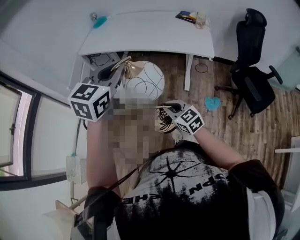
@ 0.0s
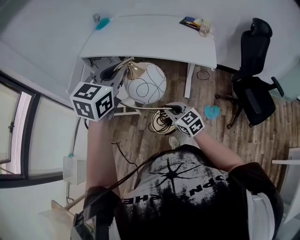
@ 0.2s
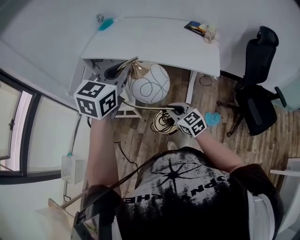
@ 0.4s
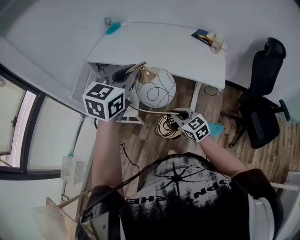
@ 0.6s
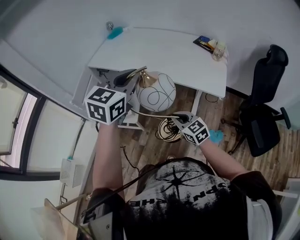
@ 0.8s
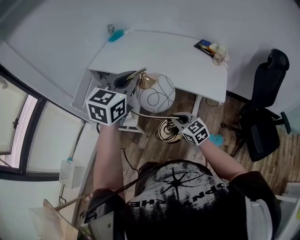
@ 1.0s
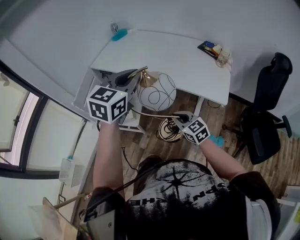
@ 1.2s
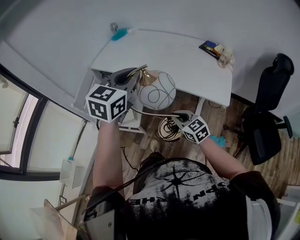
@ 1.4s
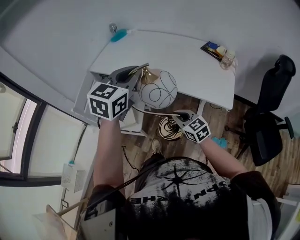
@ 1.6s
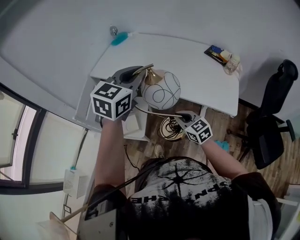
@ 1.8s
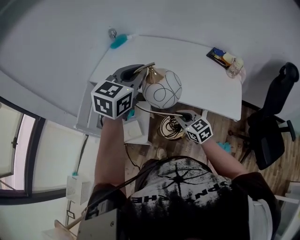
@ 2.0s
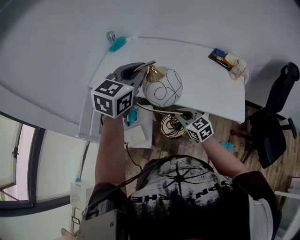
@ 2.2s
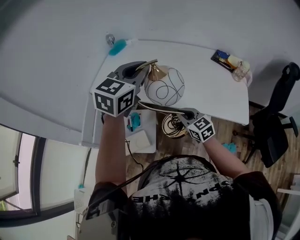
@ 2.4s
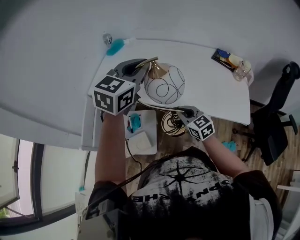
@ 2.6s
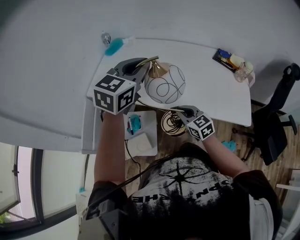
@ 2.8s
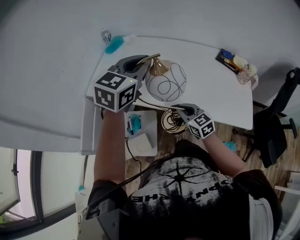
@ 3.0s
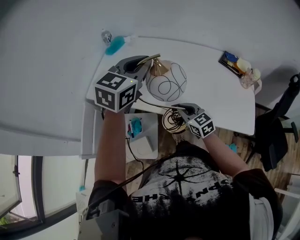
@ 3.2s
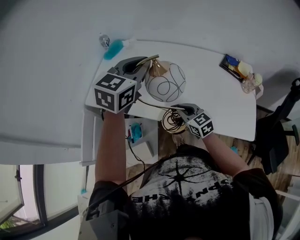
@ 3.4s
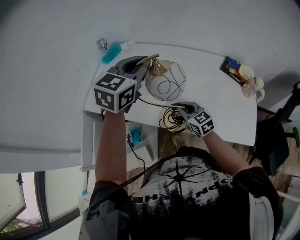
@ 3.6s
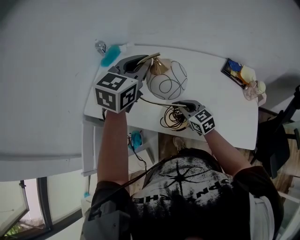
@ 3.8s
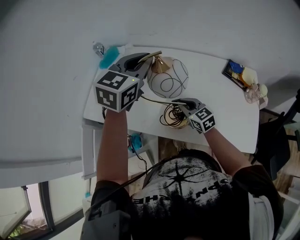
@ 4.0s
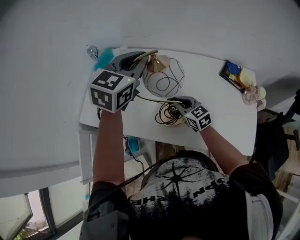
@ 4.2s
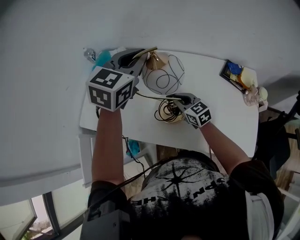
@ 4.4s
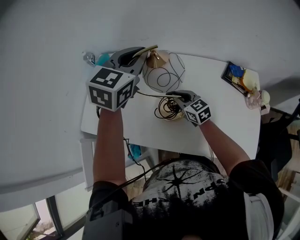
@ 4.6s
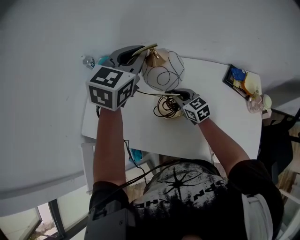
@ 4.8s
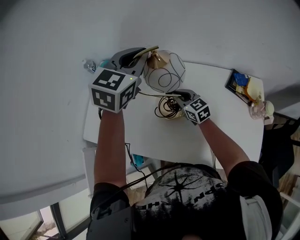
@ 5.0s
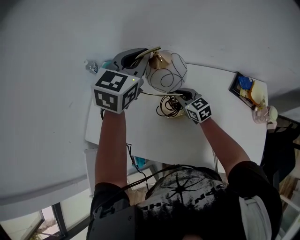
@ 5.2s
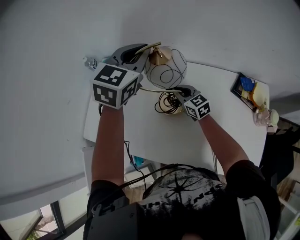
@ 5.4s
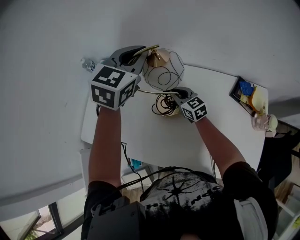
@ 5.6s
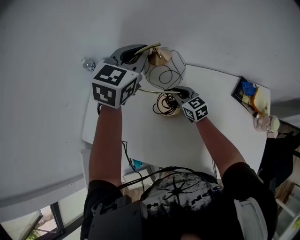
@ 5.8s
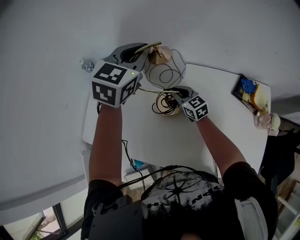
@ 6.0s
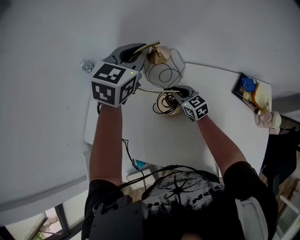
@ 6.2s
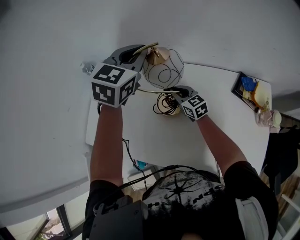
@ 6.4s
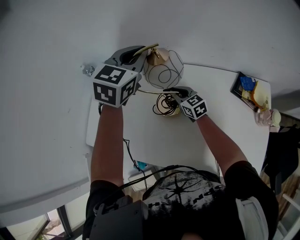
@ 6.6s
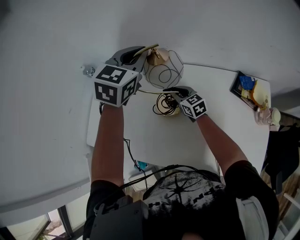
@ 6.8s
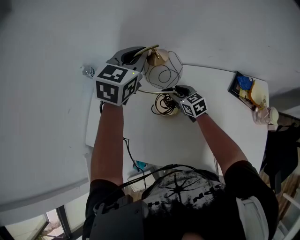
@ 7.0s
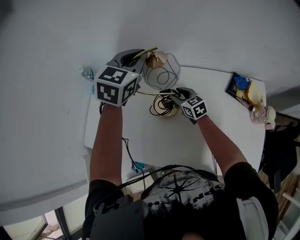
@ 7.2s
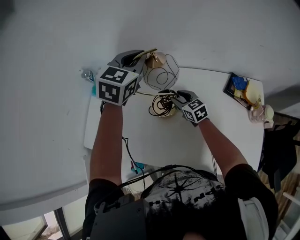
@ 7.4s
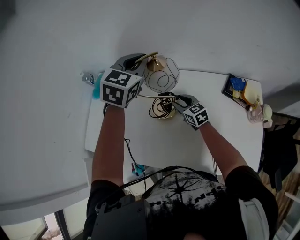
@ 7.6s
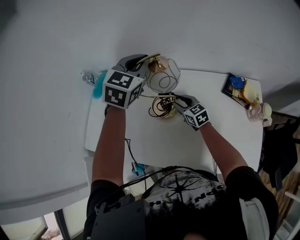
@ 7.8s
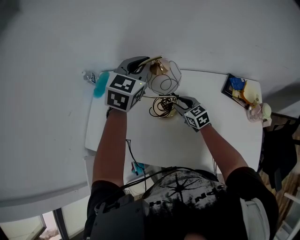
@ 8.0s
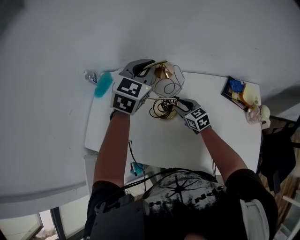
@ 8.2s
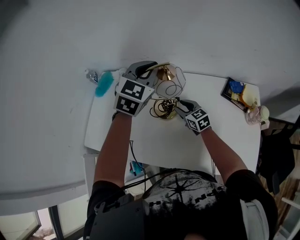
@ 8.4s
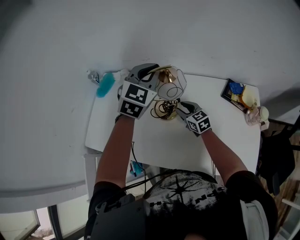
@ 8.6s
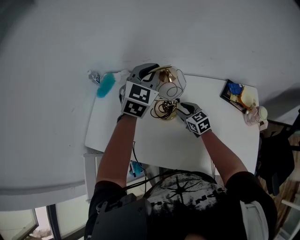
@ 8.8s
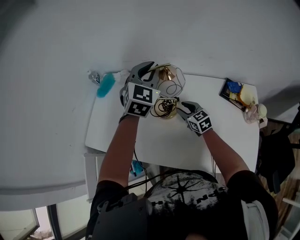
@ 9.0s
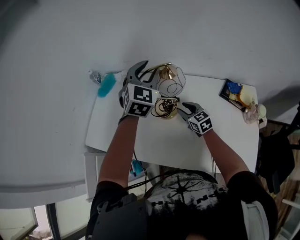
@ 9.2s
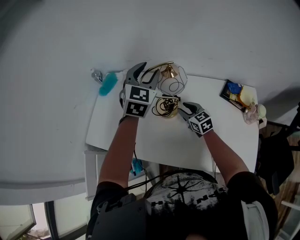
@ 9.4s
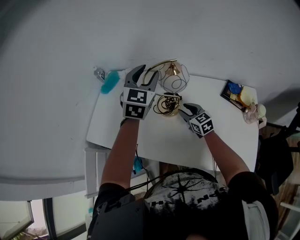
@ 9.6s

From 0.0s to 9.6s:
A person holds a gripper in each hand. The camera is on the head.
From 0.0s to 1.6s: The two grippers go roughly 25 cm forward.
From 1.6s to 3.2s: The two grippers go about 30 cm forward.
From 3.2s to 4.8s: Both grippers move forward, approximately 30 cm.
From 4.8s to 6.4s: Both grippers move forward, about 10 cm.
From 6.4s to 8.0s: The right gripper is displaced backward by about 5 cm, and opens up.
From 8.0s to 9.6s: The two grippers go roughly 5 cm backward. The left gripper opens.

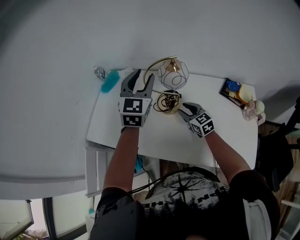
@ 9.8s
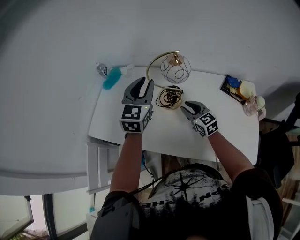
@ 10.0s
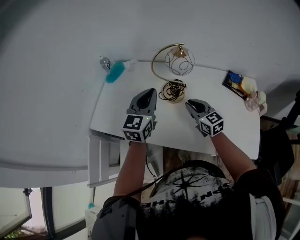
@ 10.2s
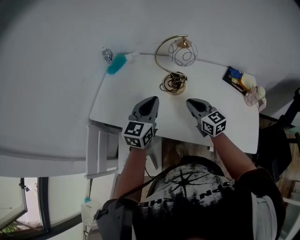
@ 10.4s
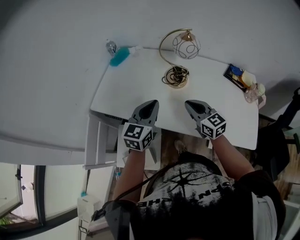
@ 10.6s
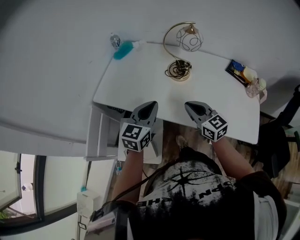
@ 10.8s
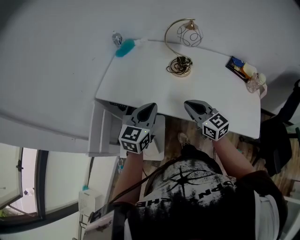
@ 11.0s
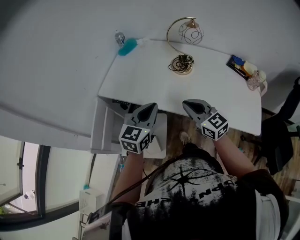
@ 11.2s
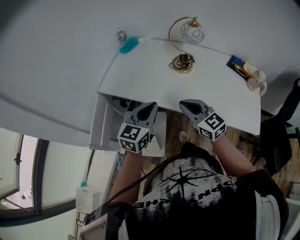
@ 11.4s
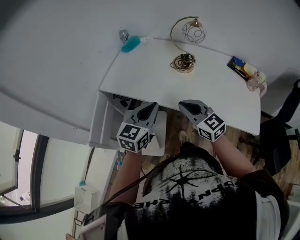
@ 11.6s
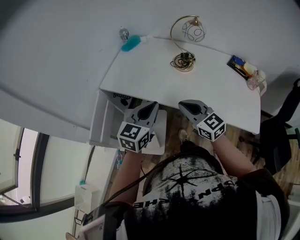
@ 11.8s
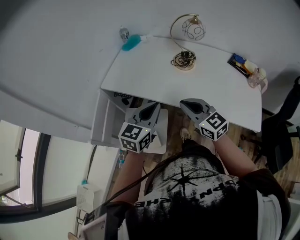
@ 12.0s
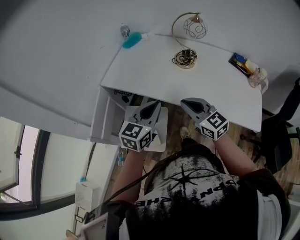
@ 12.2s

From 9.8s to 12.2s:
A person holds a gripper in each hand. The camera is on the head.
From 9.8s to 11.0s: The right gripper is displaced backward and to the left by roughly 25 cm, and closes its fingers, while the left gripper shifts approximately 35 cm backward, to the left and downward, turns by some 20 degrees, and closes up.
From 11.0s to 12.2s: The right gripper travels backward and to the left by approximately 10 cm, while the left gripper goes roughly 5 cm backward.

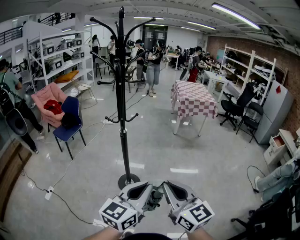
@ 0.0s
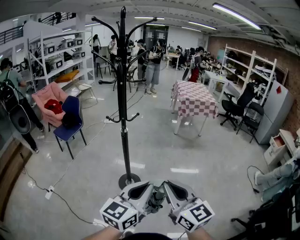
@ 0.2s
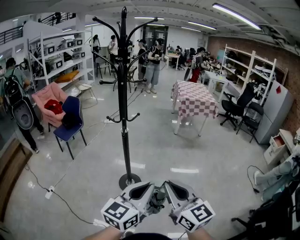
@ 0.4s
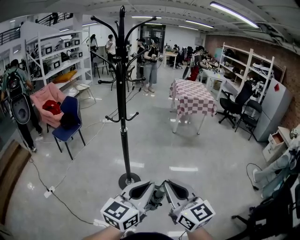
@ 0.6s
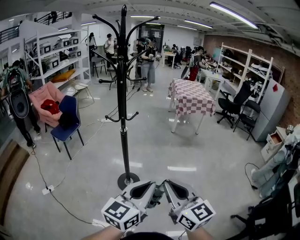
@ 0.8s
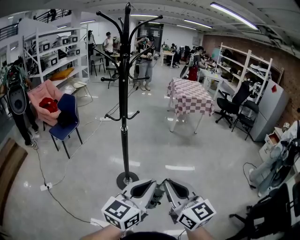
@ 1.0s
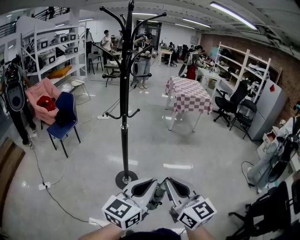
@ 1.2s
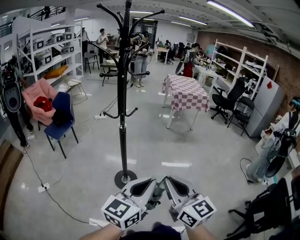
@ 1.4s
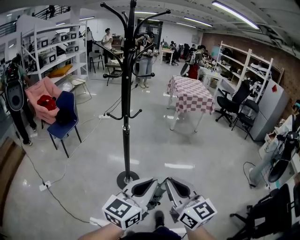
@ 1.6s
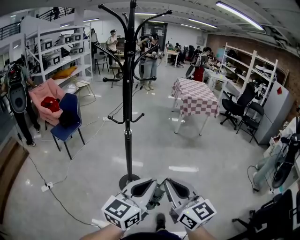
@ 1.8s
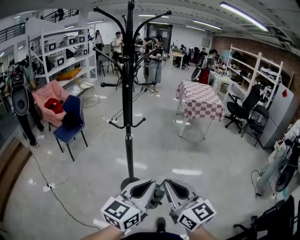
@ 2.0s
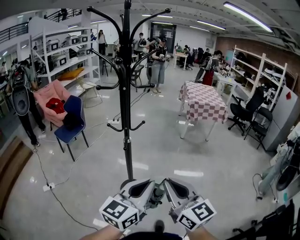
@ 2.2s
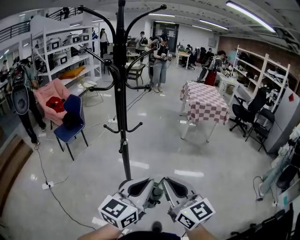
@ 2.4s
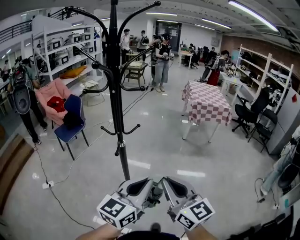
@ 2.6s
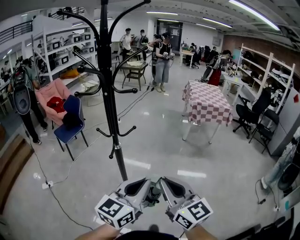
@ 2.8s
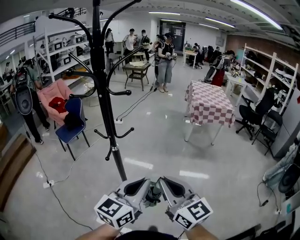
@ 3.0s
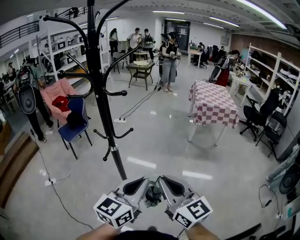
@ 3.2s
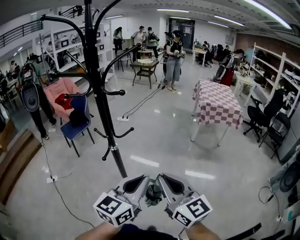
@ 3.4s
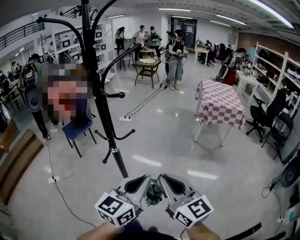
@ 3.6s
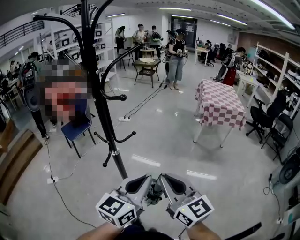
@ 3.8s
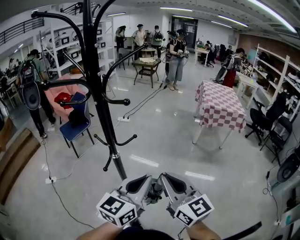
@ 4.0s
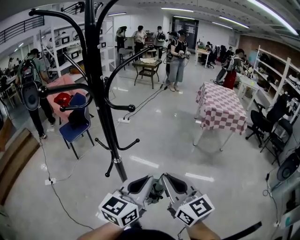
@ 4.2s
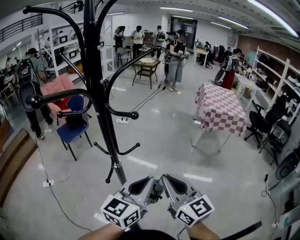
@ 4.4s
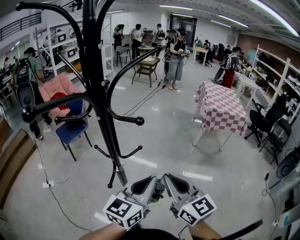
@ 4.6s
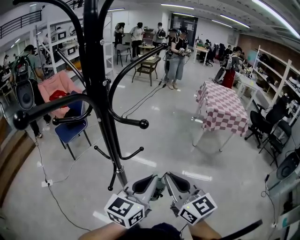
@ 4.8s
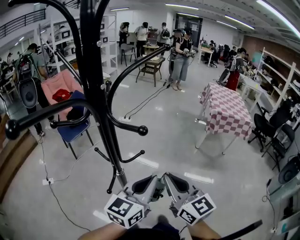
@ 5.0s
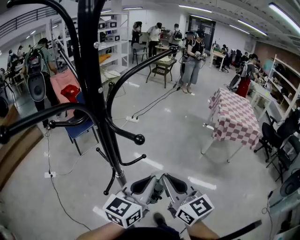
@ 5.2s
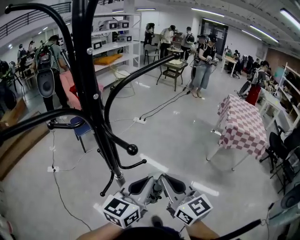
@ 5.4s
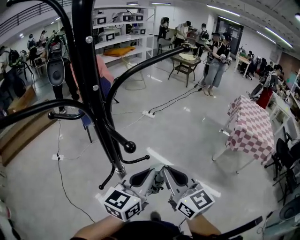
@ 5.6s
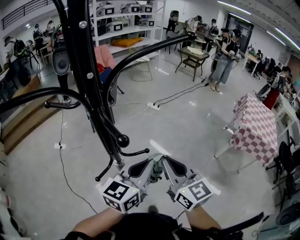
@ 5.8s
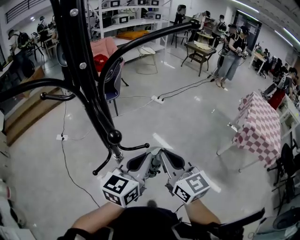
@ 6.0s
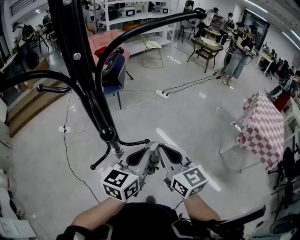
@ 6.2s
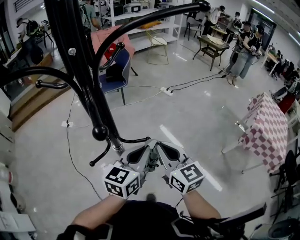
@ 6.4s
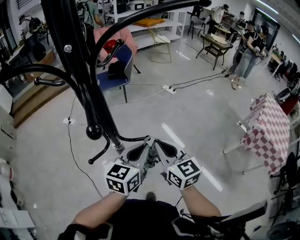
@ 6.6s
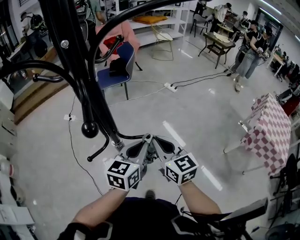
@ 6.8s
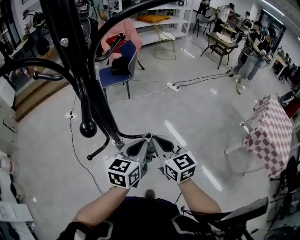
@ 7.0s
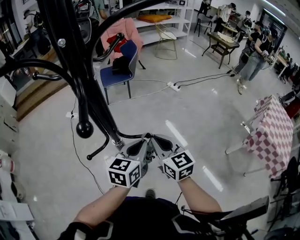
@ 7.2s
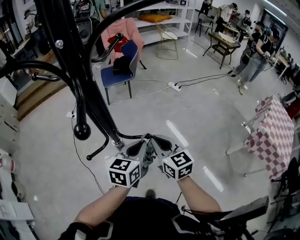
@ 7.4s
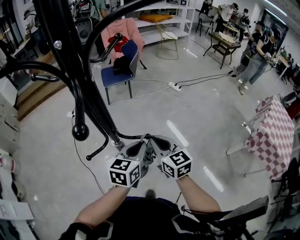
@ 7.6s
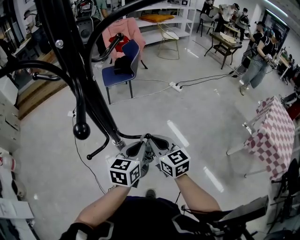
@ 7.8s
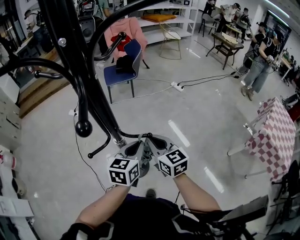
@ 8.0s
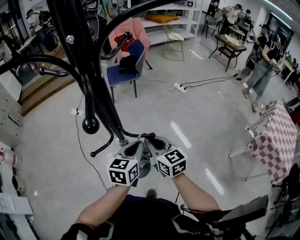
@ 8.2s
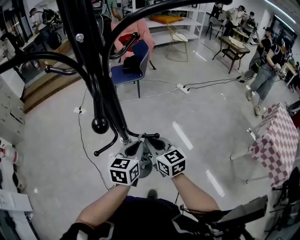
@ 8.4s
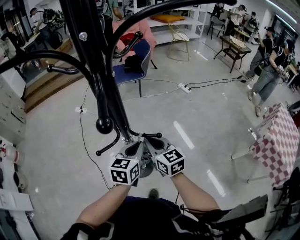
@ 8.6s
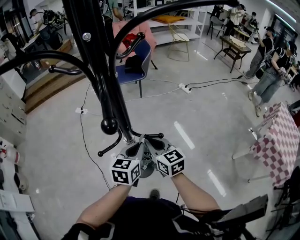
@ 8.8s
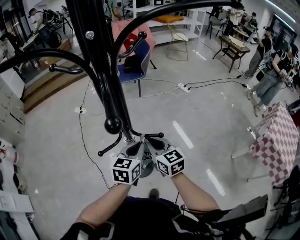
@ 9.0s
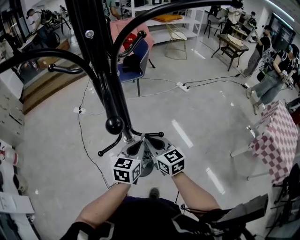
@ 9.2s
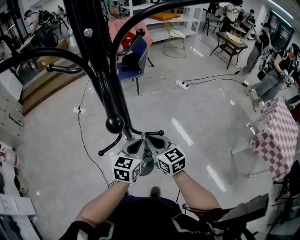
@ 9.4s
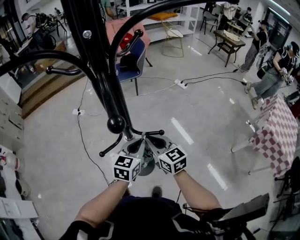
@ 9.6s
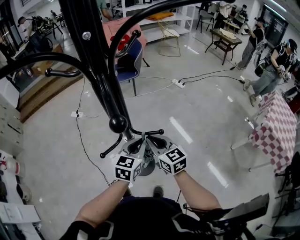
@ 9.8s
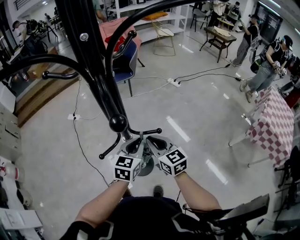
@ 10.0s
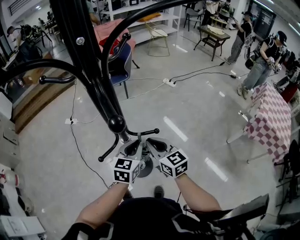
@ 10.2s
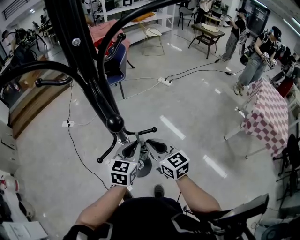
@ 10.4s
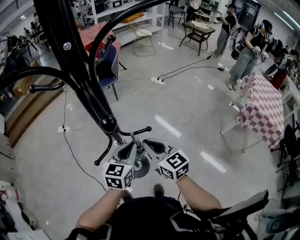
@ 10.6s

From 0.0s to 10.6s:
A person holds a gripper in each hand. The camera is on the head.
From 0.0s to 1.6s: Both grippers travel together to the left, roughly 5 cm.
From 1.6s to 3.0s: The grippers both shift forward and to the right by some 25 cm.
From 3.0s to 4.6s: Both grippers travel together forward, some 20 cm.
From 4.6s to 6.0s: The right gripper moves about 20 cm, and rotates roughly 30 degrees; the left gripper ends up about 15 cm from where it was, and rotates some 30 degrees.
From 6.0s to 7.6s: Both grippers travel together downward and forward, roughly 15 cm. The left gripper swivels about 20 degrees.
From 7.6s to 9.0s: Both grippers move to the left, roughly 5 cm.
From 9.0s to 10.6s: The right gripper shifts by roughly 5 cm.

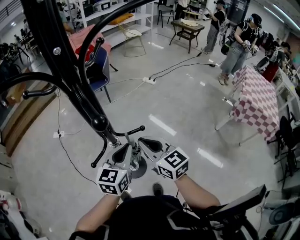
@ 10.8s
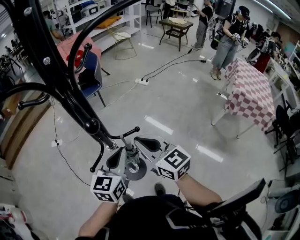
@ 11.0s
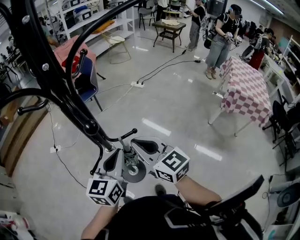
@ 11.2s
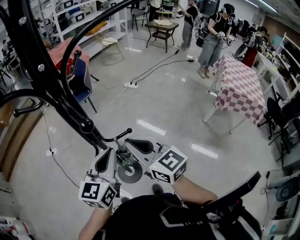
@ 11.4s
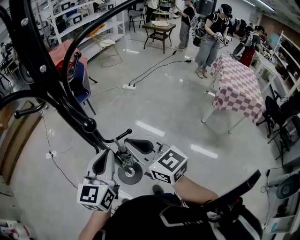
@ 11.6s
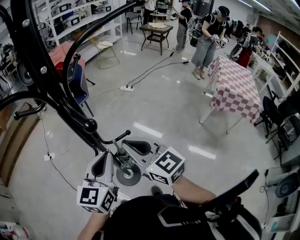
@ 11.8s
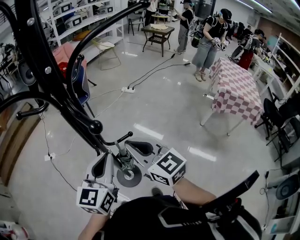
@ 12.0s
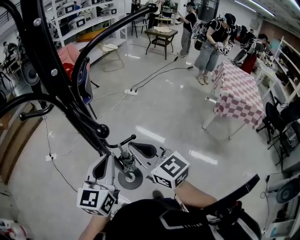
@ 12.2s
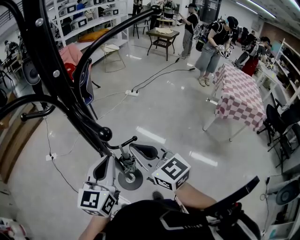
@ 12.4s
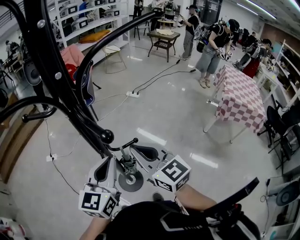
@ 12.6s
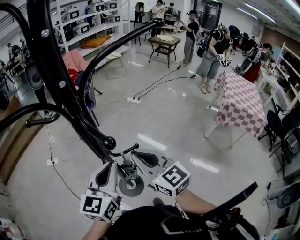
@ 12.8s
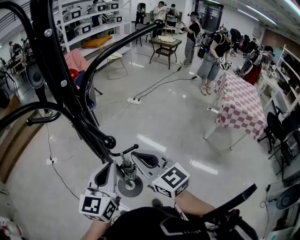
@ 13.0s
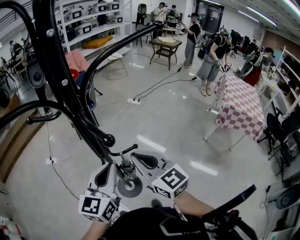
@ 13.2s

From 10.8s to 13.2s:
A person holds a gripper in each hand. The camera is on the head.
From 10.8s to 12.0s: Both grippers travel together upward, some 10 cm.
From 12.0s to 13.2s: Both grippers stay put.
